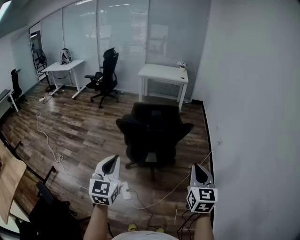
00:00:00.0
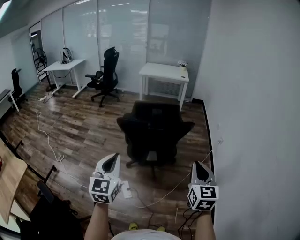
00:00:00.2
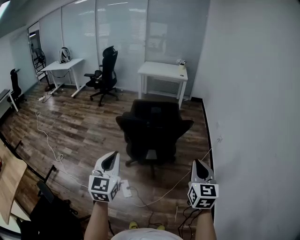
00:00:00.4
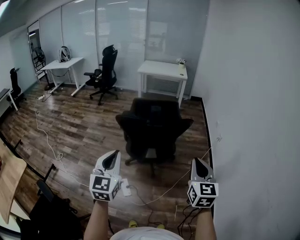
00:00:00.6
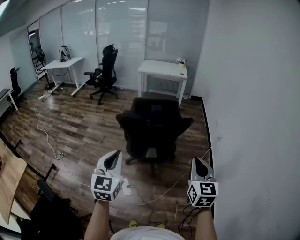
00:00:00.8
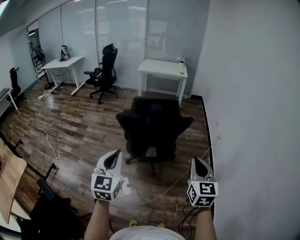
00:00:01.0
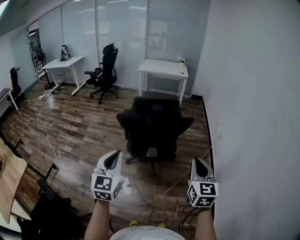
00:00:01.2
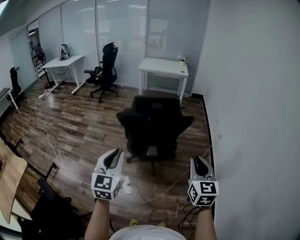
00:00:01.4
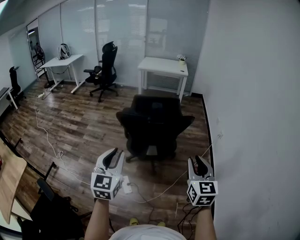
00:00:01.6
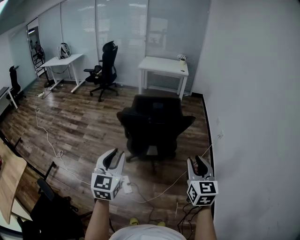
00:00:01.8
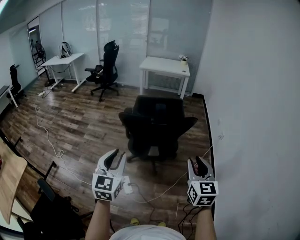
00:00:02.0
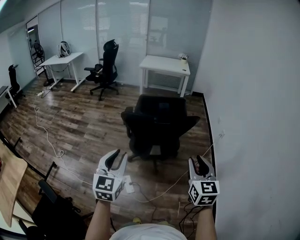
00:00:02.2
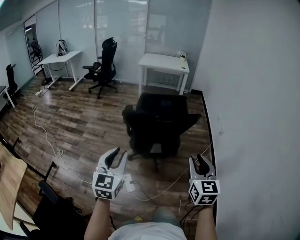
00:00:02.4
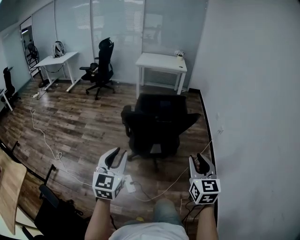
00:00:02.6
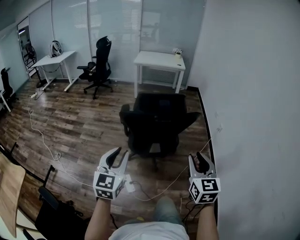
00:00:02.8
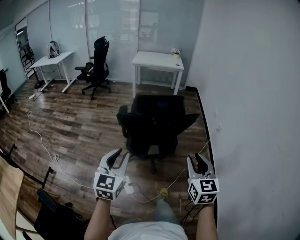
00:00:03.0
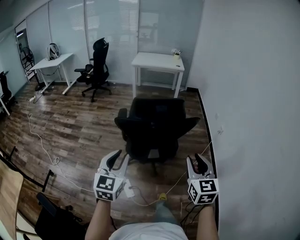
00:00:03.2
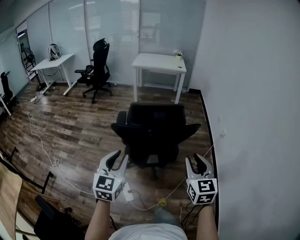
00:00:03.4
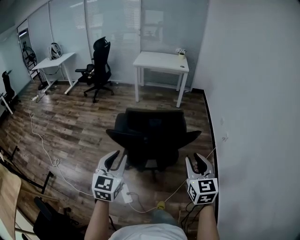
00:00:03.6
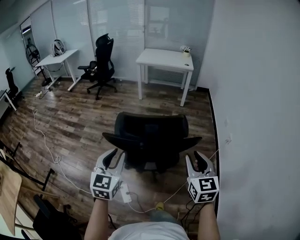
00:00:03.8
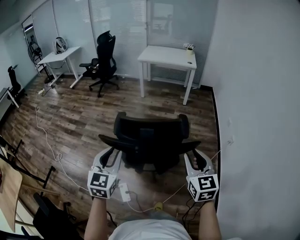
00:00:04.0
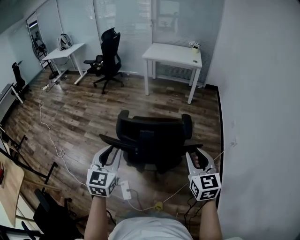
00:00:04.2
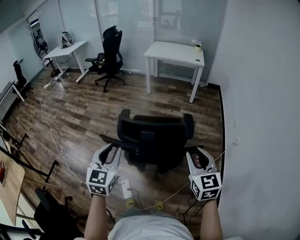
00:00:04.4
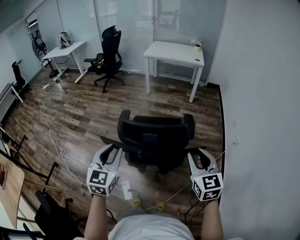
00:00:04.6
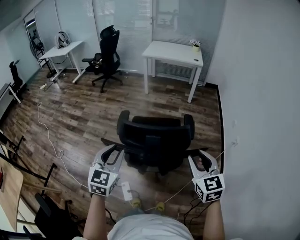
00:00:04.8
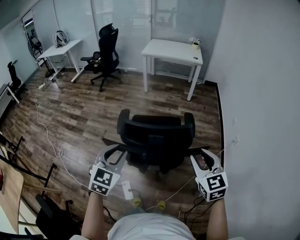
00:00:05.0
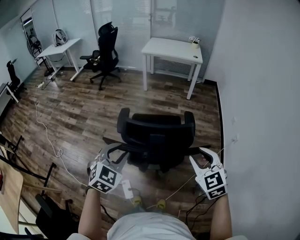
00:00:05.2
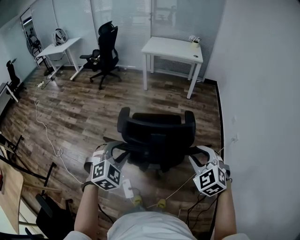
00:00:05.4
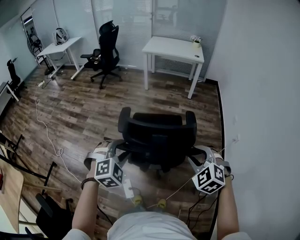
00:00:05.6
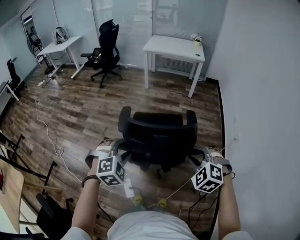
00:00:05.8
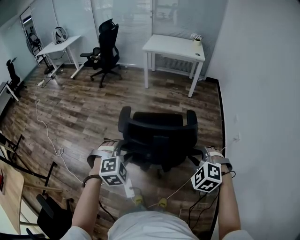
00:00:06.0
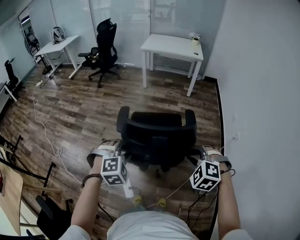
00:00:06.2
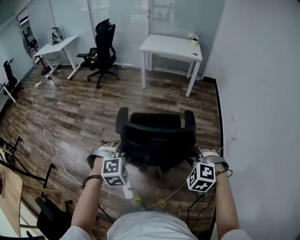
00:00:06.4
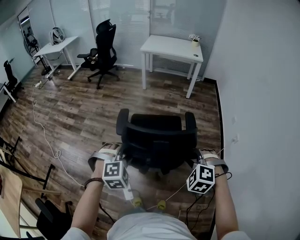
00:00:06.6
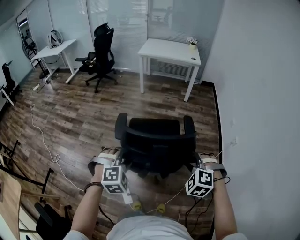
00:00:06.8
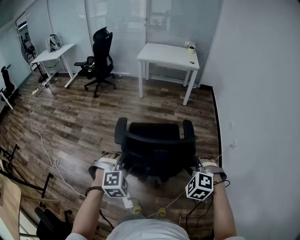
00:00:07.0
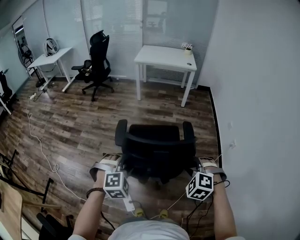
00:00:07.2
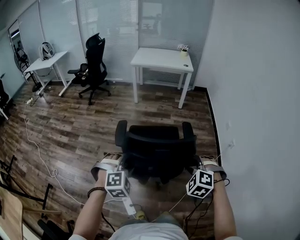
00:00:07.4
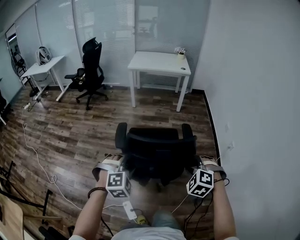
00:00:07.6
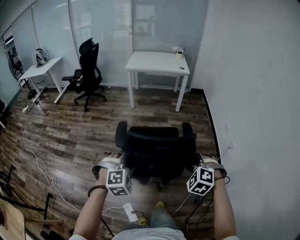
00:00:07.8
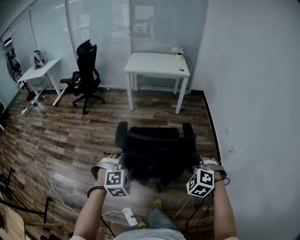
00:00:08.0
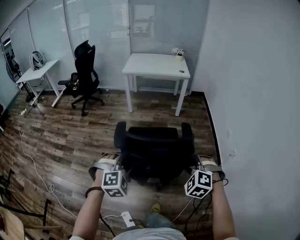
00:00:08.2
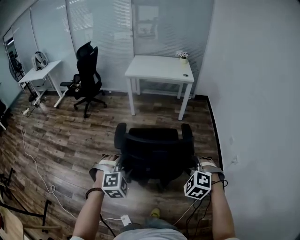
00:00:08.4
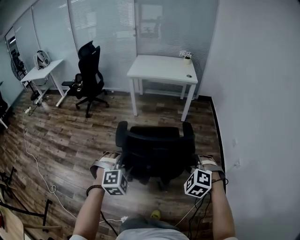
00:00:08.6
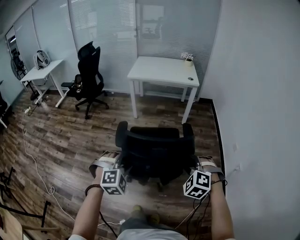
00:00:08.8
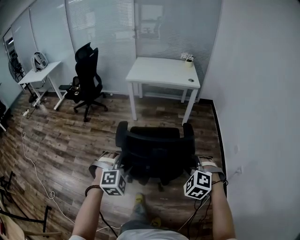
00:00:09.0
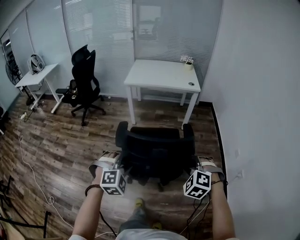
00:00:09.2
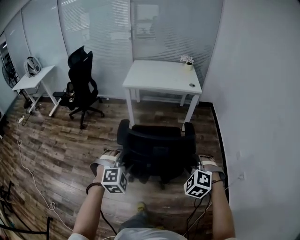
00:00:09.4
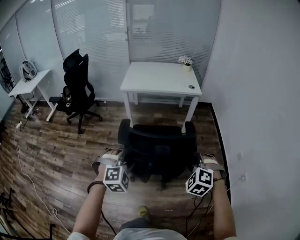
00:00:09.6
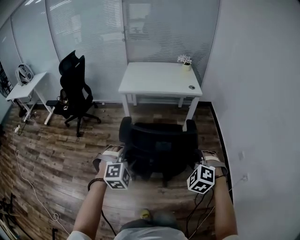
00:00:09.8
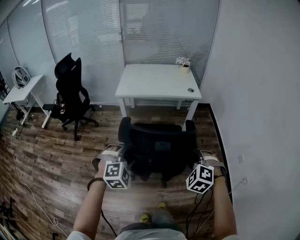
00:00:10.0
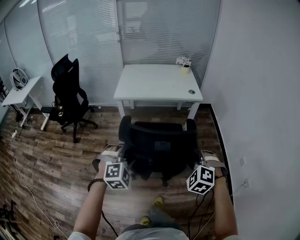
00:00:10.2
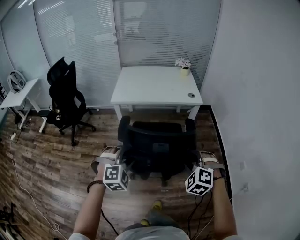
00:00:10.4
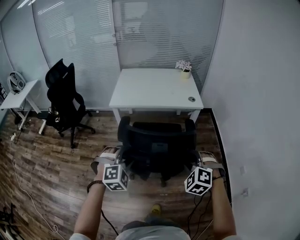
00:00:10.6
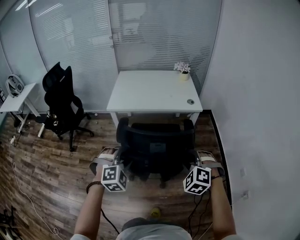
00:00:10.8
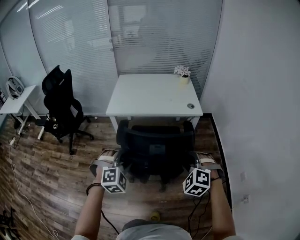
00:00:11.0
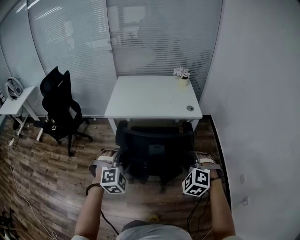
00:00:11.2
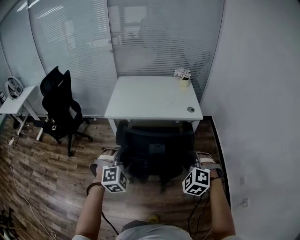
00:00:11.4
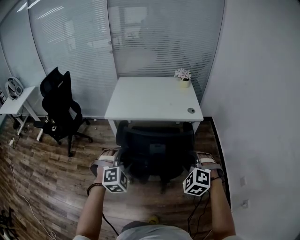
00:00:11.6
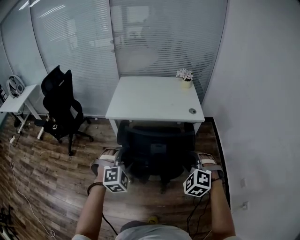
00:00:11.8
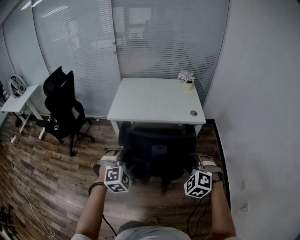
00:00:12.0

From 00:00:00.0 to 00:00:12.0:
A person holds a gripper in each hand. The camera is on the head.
From 00:00:00.0 to 00:00:01.6: The right gripper opens.
From 00:00:01.6 to 00:00:03.0: The left gripper goes some 5 cm forward. The right gripper moves to the left, approximately 5 cm.
From 00:00:03.0 to 00:00:04.4: The two grippers go some 30 cm forward.
From 00:00:04.4 to 00:00:06.0: The left gripper heads downward, covering roughly 10 cm, rotates around the line of its fingers by roughly 50 degrees, clockwise from behind, and opens. The right gripper is displaced downward and to the left by about 10 cm, and rolls counterclockwise, seen from behind, by roughly 50 degrees.
From 00:00:06.0 to 00:00:07.6: Both grippers move forward, roughly 10 cm.
From 00:00:07.6 to 00:00:09.0: Both grippers move forward, some 35 cm.
From 00:00:09.0 to 00:00:10.4: Both grippers are carried forward, about 40 cm.
From 00:00:10.4 to 00:00:12.0: Both grippers travel together forward, some 15 cm.

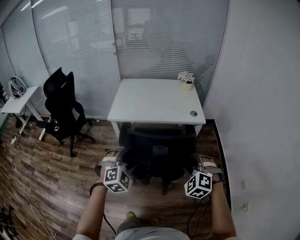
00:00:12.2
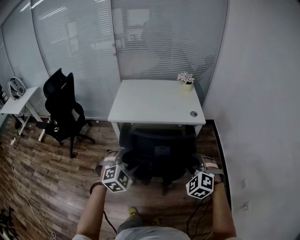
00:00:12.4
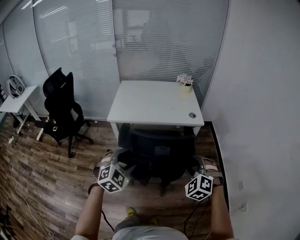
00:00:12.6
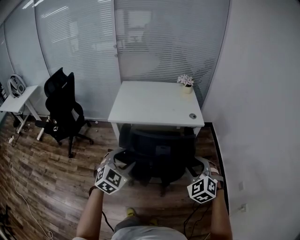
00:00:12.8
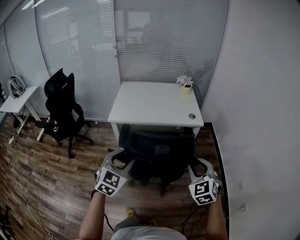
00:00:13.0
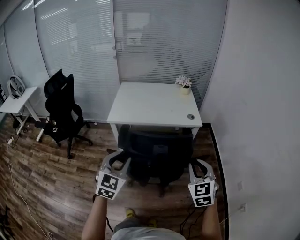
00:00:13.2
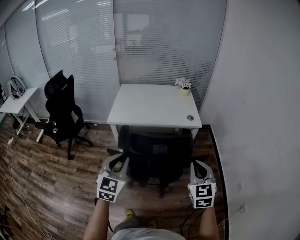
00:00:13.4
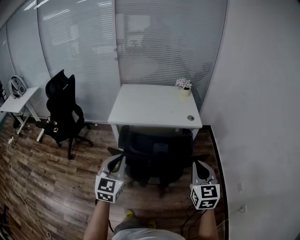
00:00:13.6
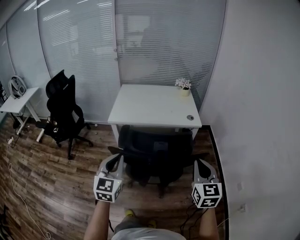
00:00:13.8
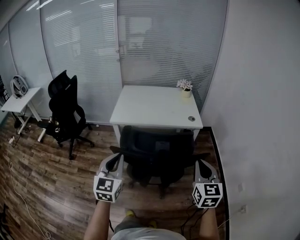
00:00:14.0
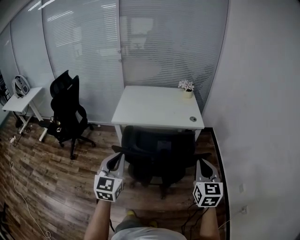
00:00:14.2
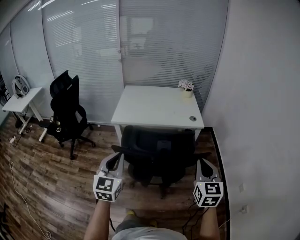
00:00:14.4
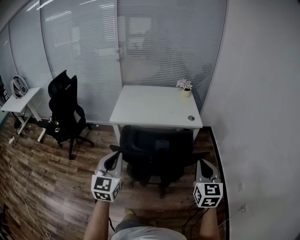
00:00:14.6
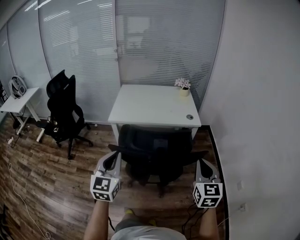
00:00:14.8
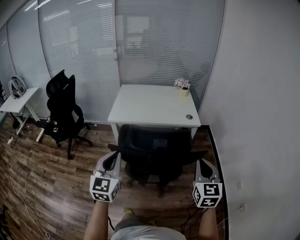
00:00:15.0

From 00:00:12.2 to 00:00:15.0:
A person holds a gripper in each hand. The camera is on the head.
From 00:00:12.2 to 00:00:13.6: The two grippers go some 10 cm upward and backward. The left gripper rolls counterclockwise, seen from behind, by some 50 degrees, and closes up. The right gripper rolls clockwise, seen from behind, by about 50 degrees, and closes.
From 00:00:13.6 to 00:00:15.0: There are only small adjustments of the grippers.

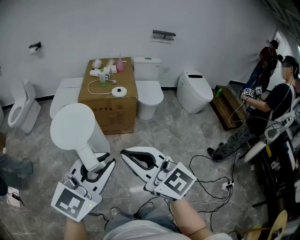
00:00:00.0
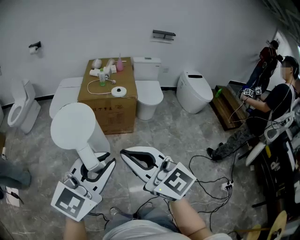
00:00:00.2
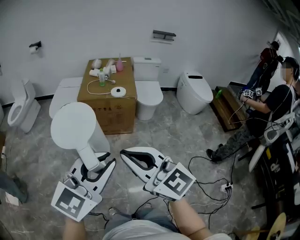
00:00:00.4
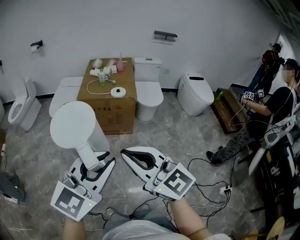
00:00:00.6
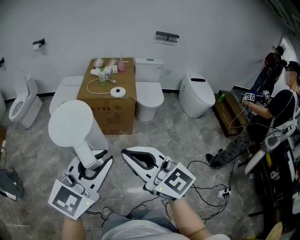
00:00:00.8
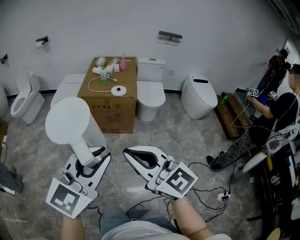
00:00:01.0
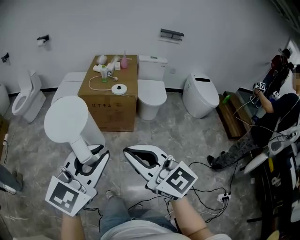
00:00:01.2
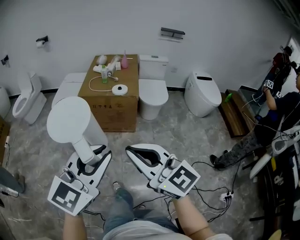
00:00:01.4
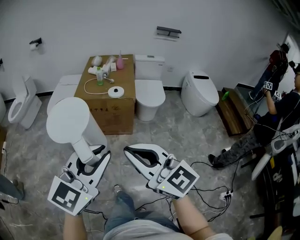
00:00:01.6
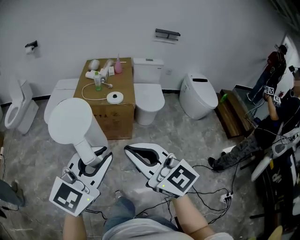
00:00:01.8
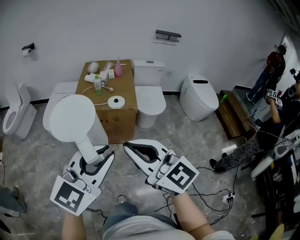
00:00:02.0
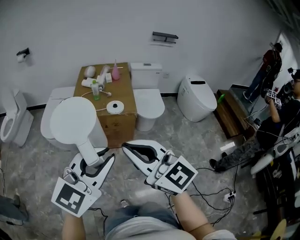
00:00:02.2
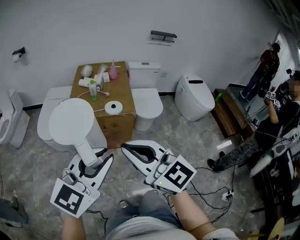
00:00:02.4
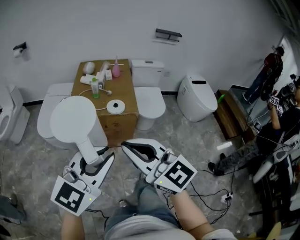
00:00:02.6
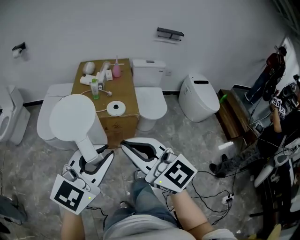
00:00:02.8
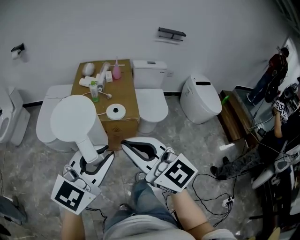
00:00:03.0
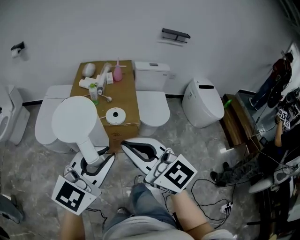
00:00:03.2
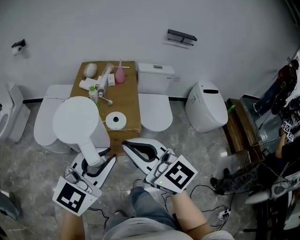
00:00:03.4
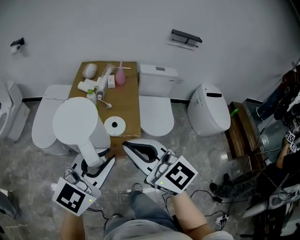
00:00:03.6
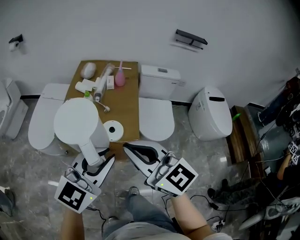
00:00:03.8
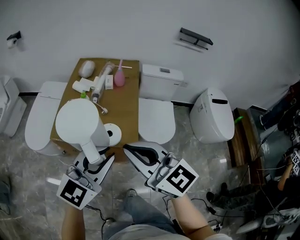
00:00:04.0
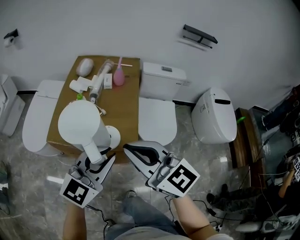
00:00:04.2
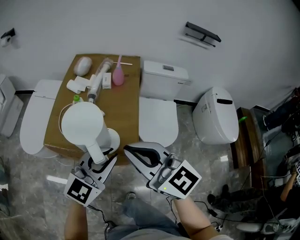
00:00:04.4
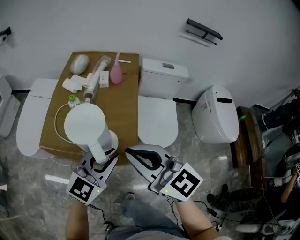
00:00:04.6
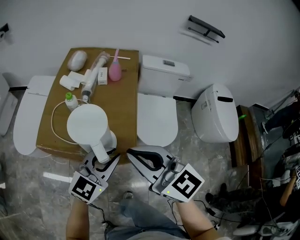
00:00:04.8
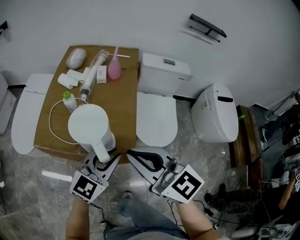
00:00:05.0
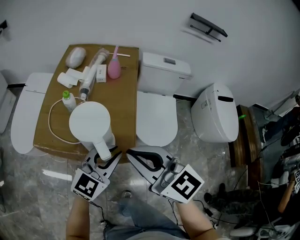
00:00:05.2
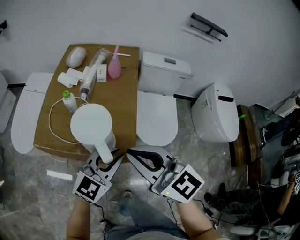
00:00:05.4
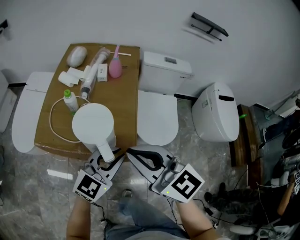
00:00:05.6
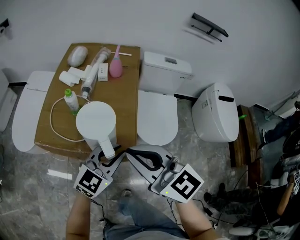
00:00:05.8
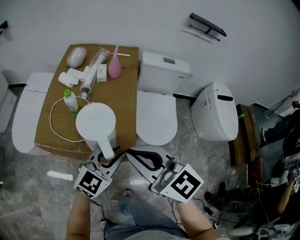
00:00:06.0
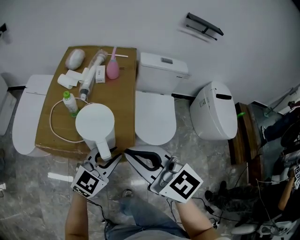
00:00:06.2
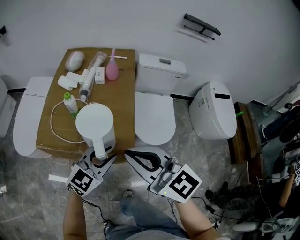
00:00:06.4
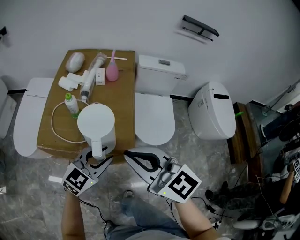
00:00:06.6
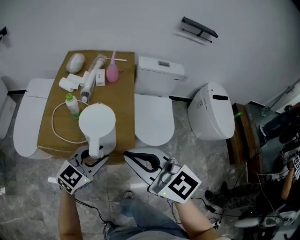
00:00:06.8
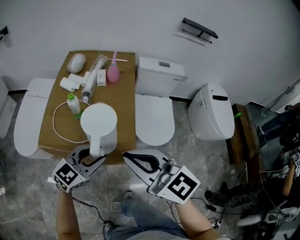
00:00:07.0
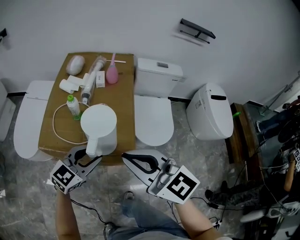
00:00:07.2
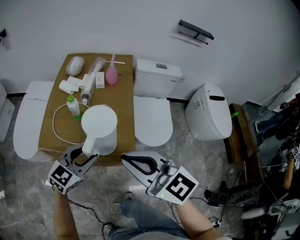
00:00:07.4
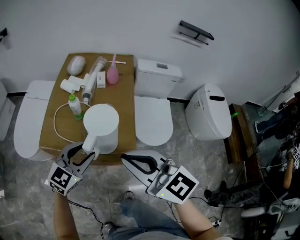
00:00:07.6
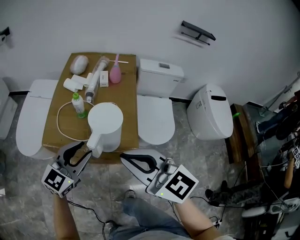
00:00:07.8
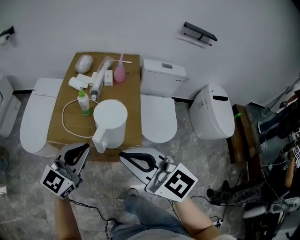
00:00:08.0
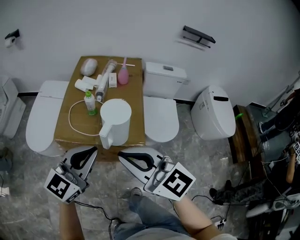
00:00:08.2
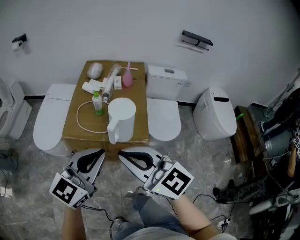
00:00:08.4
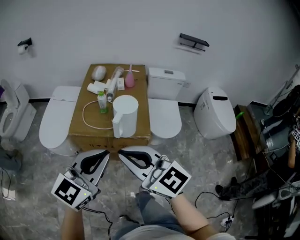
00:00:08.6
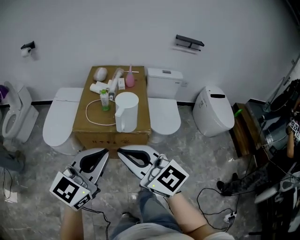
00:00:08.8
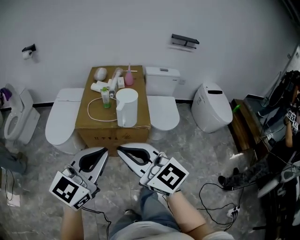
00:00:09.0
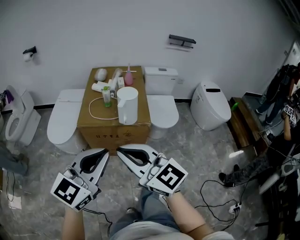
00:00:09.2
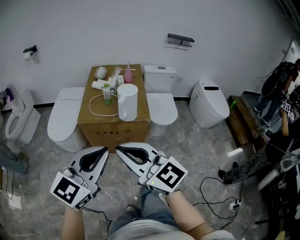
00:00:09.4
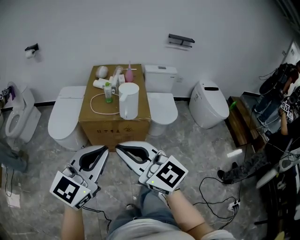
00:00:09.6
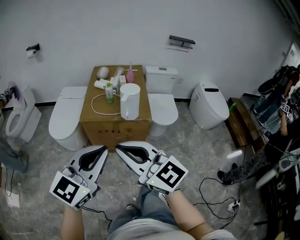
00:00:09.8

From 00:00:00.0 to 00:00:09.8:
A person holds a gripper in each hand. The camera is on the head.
From 00:00:00.0 to 00:00:01.4: Both grippers travel together to the right, about 10 cm.
From 00:00:01.4 to 00:00:02.8: Both grippers travel together forward, roughly 25 cm.
From 00:00:02.8 to 00:00:04.2: The two grippers go approximately 30 cm forward.
From 00:00:04.2 to 00:00:05.6: The left gripper shifts approximately 15 cm downward, forward and to the right; the right gripper goes roughly 10 cm downward and forward.
From 00:00:05.6 to 00:00:07.0: The left gripper heads to the left, covering some 10 cm.
From 00:00:07.0 to 00:00:08.4: The left gripper travels upward, backward and to the left by some 25 cm, changes its angle by about 20 degrees, and closes up. Meanwhile the right gripper goes approximately 15 cm backward, to the left and upward.
From 00:00:08.4 to 00:00:09.8: The left gripper moves backward, roughly 25 cm. Meanwhile the right gripper moves backward and to the left, roughly 25 cm.
